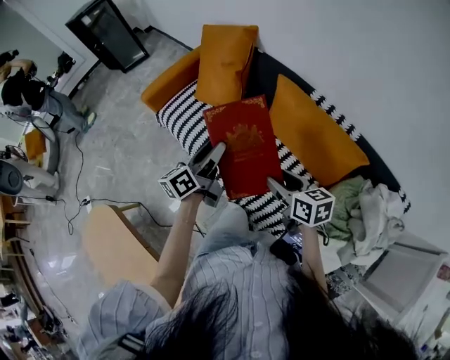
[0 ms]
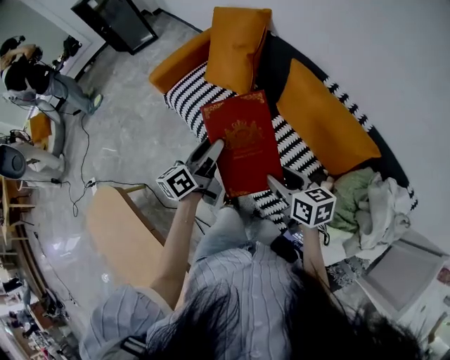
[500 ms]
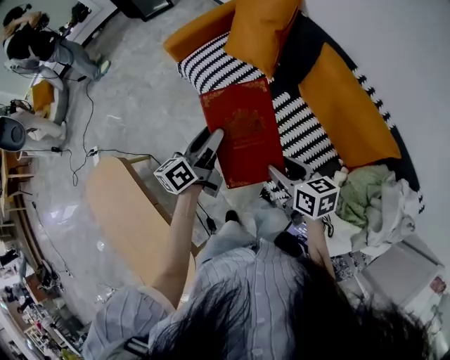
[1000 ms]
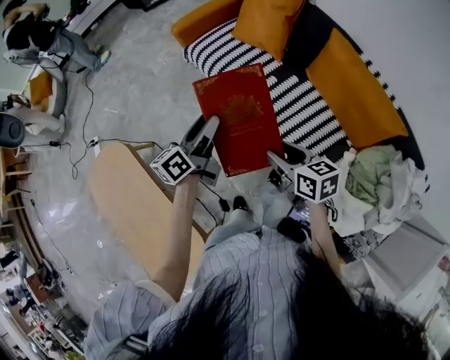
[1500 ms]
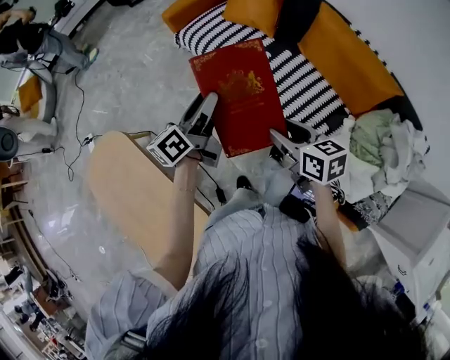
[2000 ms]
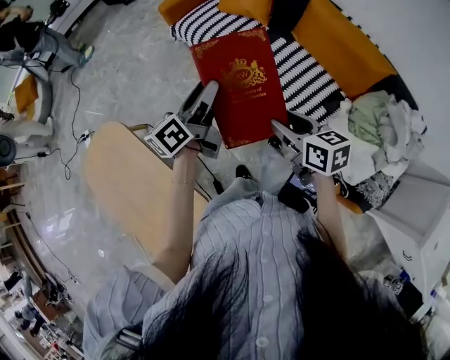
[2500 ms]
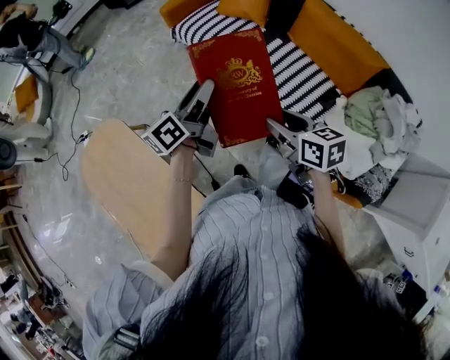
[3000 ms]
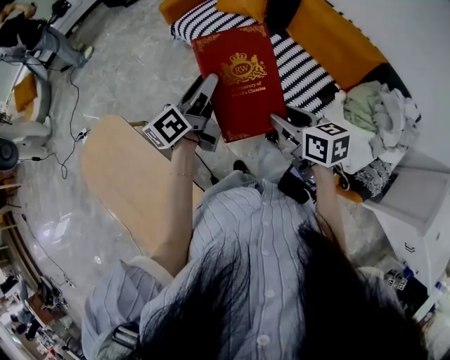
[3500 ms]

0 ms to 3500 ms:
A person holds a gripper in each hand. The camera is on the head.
0 ms to 2000 ms: The grippers both shift to the left and backward by about 25 cm.
2000 ms to 3500 ms: Both grippers move backward, approximately 10 cm.

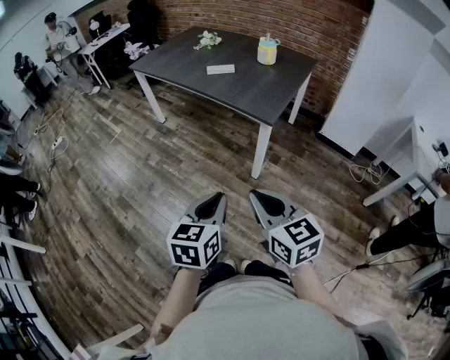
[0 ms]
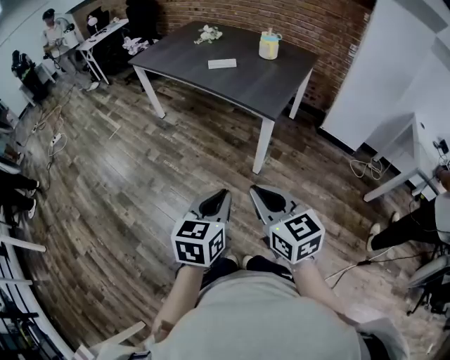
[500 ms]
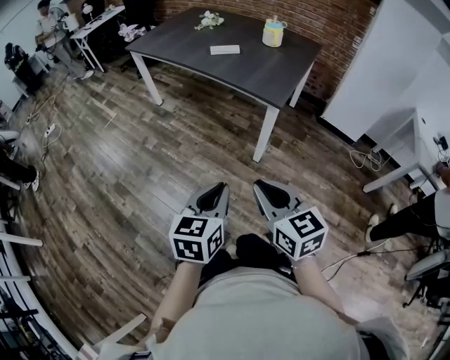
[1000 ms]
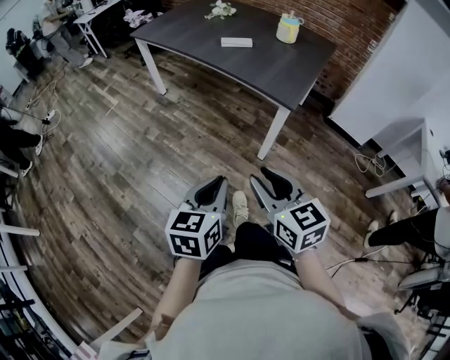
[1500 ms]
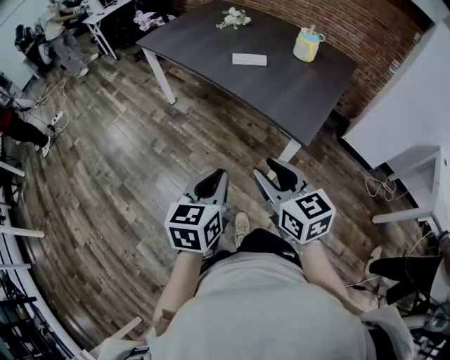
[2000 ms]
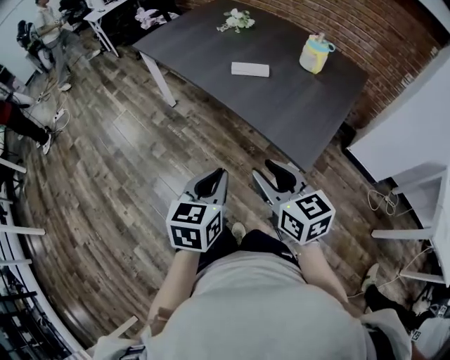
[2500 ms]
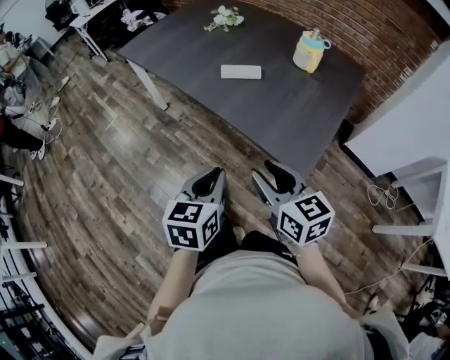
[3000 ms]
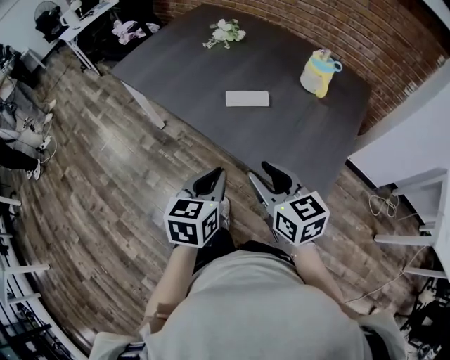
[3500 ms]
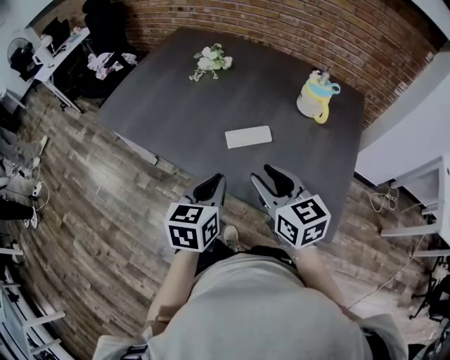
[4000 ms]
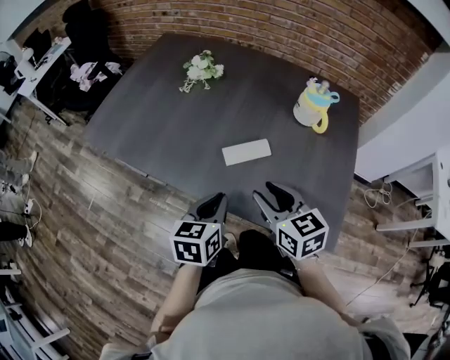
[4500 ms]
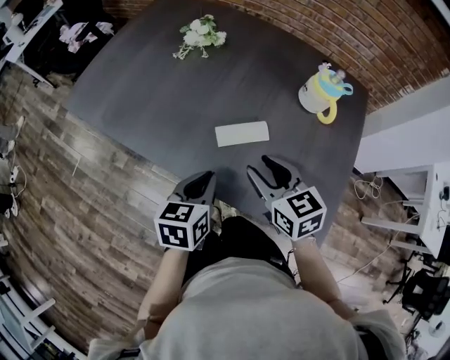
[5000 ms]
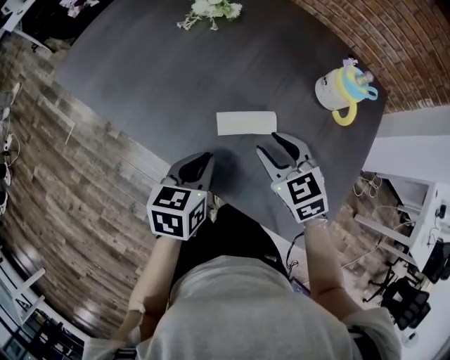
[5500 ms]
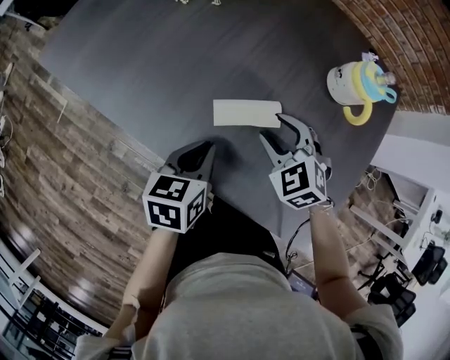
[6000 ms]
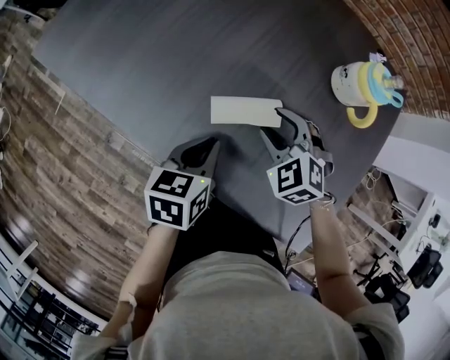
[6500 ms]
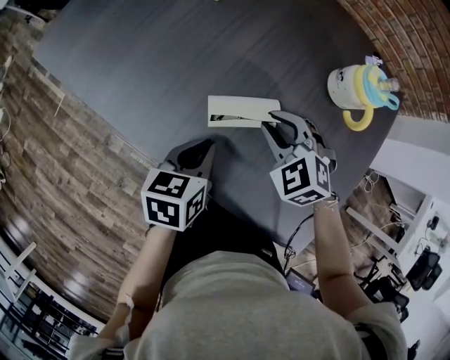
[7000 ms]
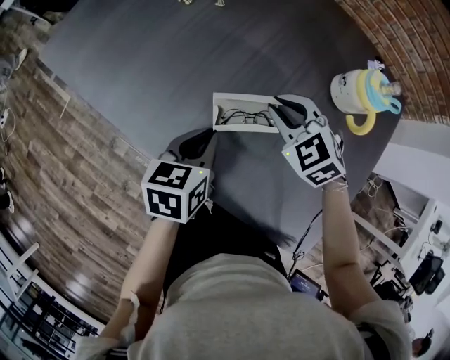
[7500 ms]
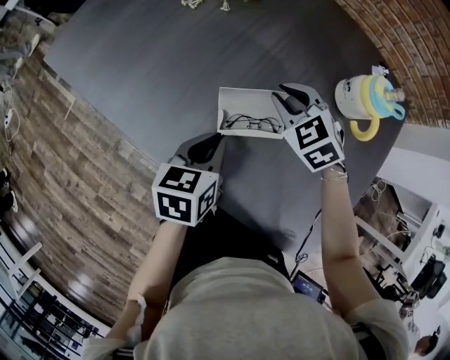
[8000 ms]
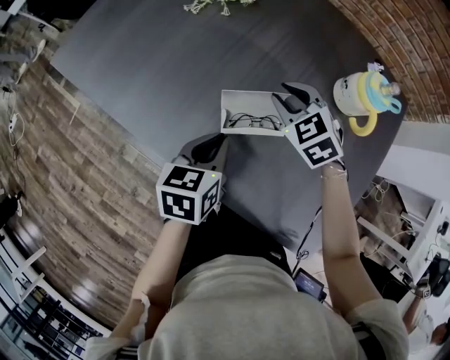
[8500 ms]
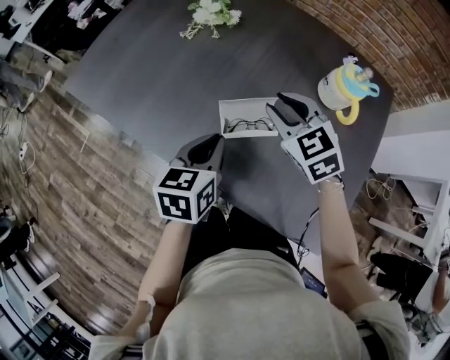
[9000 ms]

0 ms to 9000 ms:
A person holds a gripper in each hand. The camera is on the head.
0 ms to 2000 ms: Both grippers move forward, some 25 cm. The right gripper opens.
2000 ms to 4500 ms: Both grippers are carried forward, about 40 cm. The left gripper turns by about 20 degrees.
4500 ms to 7000 ms: The two grippers go approximately 15 cm forward and downward. The right gripper rolls counterclockwise, seen from behind, by roughly 50 degrees.
7000 ms to 9000 ms: Both grippers travel together upward, approximately 10 cm. The right gripper turns by approximately 20 degrees.

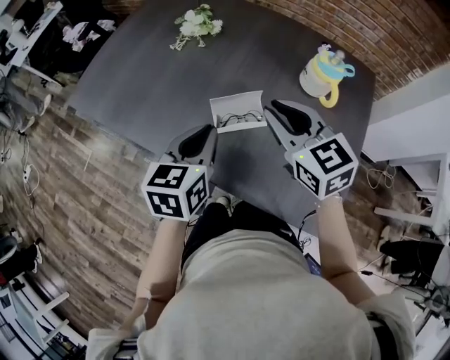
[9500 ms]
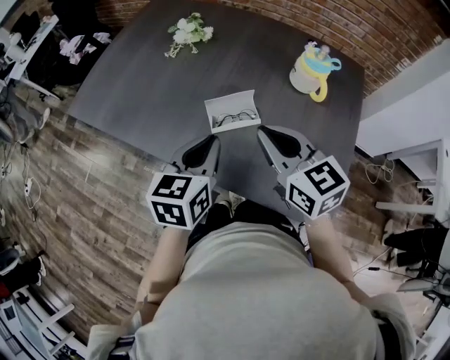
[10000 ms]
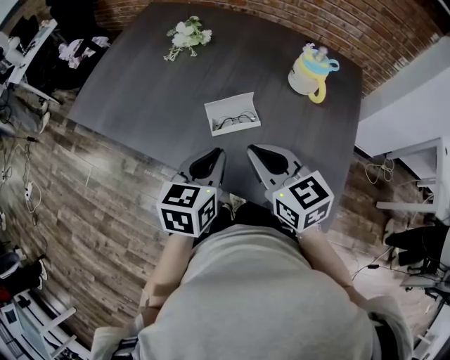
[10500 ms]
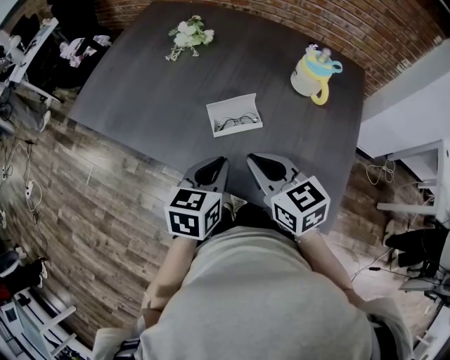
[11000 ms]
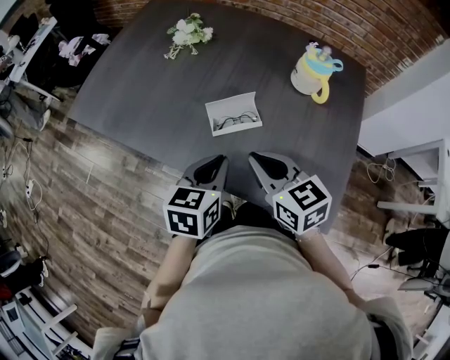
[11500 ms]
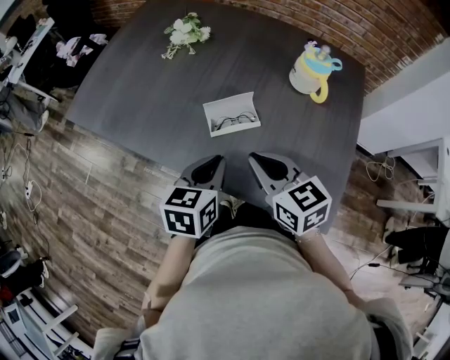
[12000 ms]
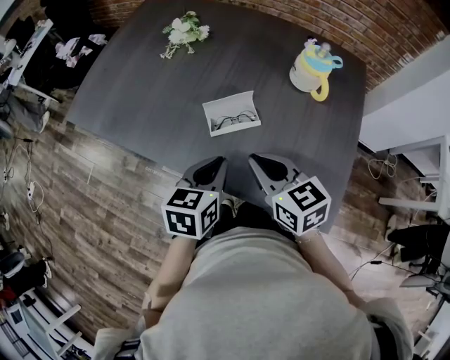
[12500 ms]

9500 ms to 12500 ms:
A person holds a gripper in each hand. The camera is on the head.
9500 ms to 11000 ms: The right gripper is displaced backward and downward by about 10 cm. Meanwhile the left gripper goes some 5 cm backward.
11000 ms to 12500 ms: There are only small adjustments of the grippers.

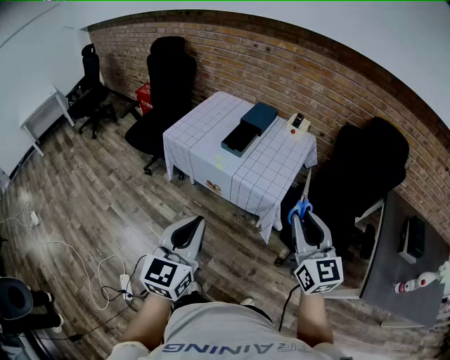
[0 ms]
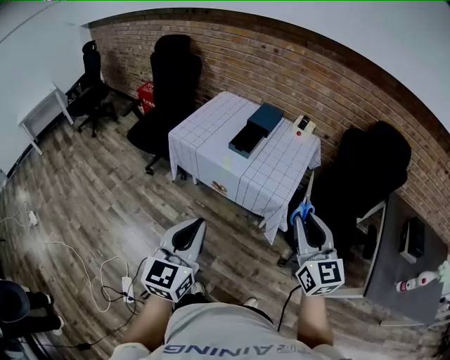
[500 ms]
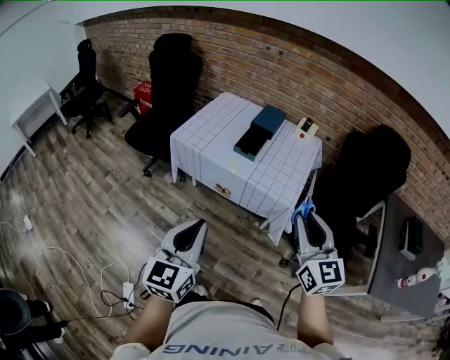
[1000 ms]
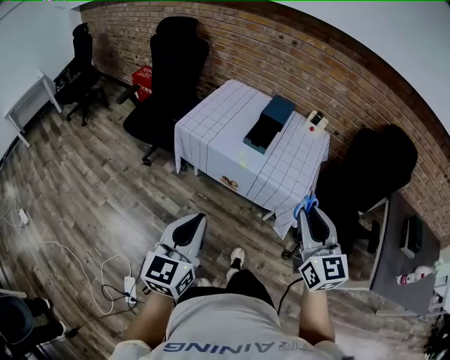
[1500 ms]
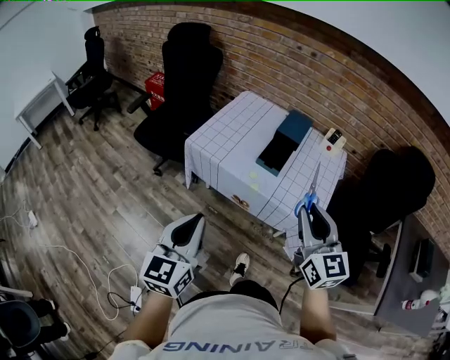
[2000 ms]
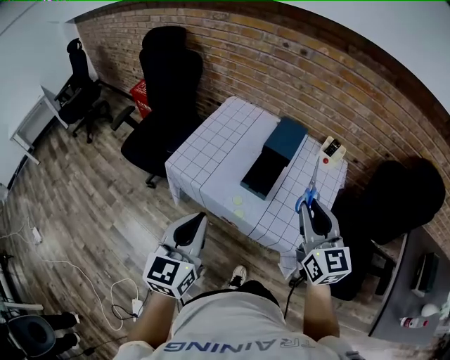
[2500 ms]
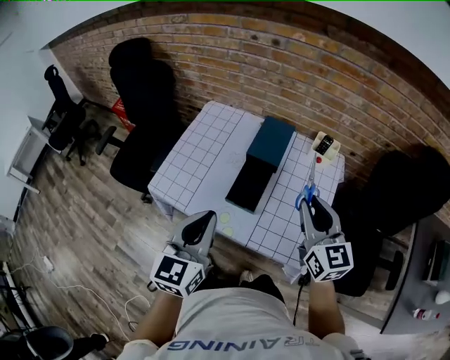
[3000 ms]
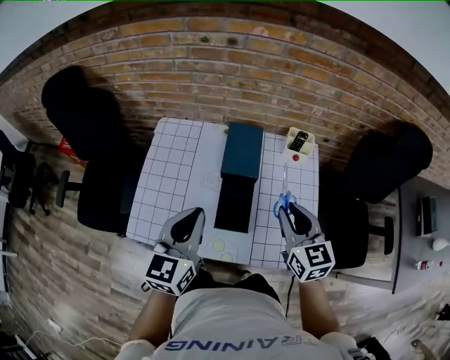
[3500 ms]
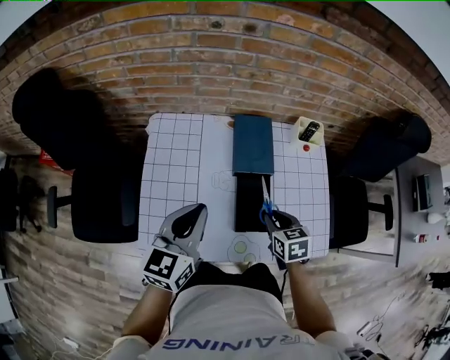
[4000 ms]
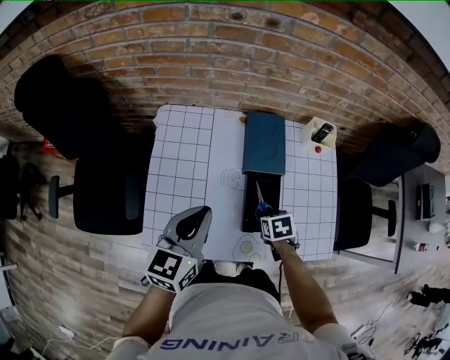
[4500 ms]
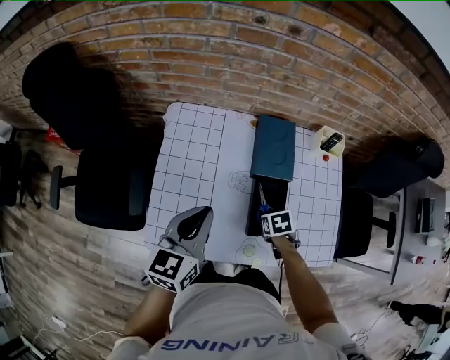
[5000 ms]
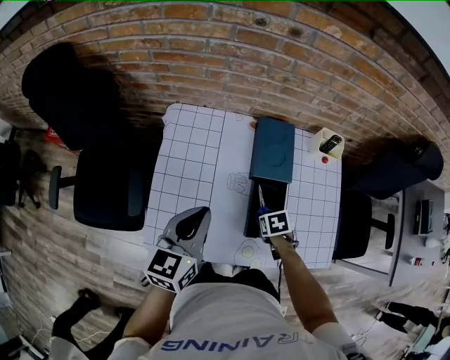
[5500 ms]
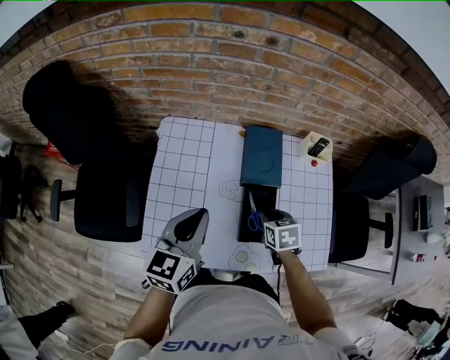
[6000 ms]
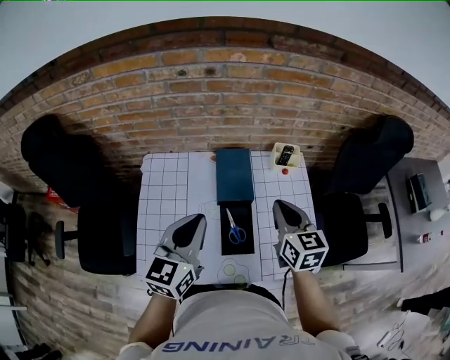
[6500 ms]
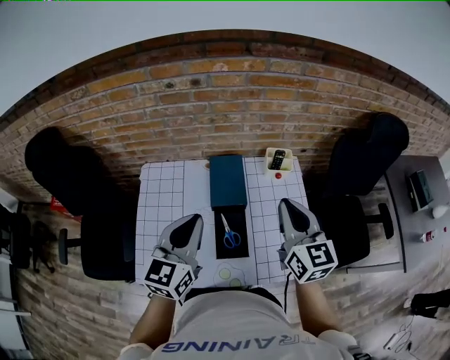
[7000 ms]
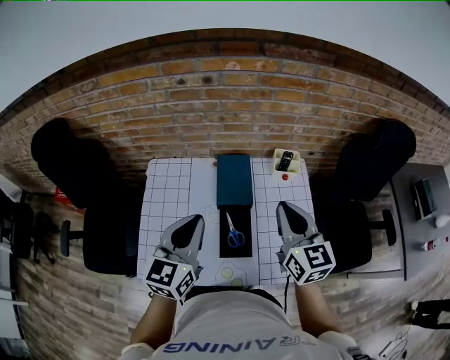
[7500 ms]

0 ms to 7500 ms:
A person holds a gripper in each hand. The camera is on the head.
0 ms to 2000 ms: The grippers both shift to the left and forward by some 25 cm.
2000 ms to 4000 ms: The right gripper changes place by roughly 40 cm, and tips its fingers downward by roughly 50 degrees; the left gripper changes place by approximately 50 cm, and swivels about 40 degrees.
4000 ms to 5500 ms: The right gripper goes approximately 10 cm downward, and angles its fingers downward, by about 30 degrees.
5500 ms to 7500 ms: The left gripper shifts by approximately 15 cm. The right gripper moves upward, approximately 35 cm, tilts its fingers some 70 degrees upward, and closes its fingers.

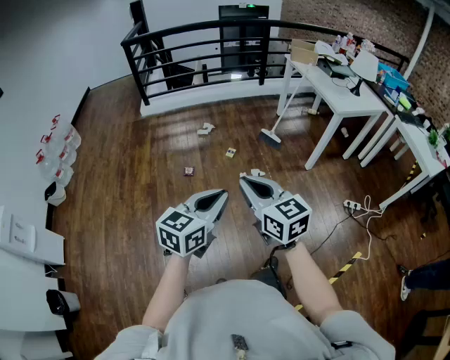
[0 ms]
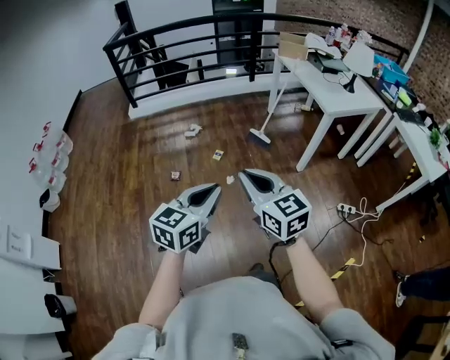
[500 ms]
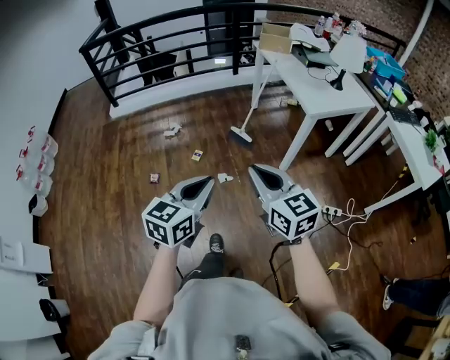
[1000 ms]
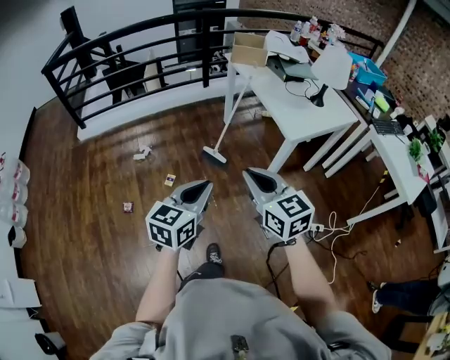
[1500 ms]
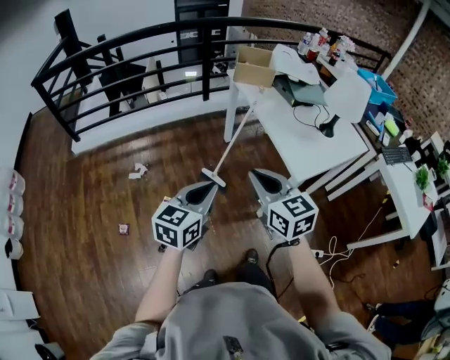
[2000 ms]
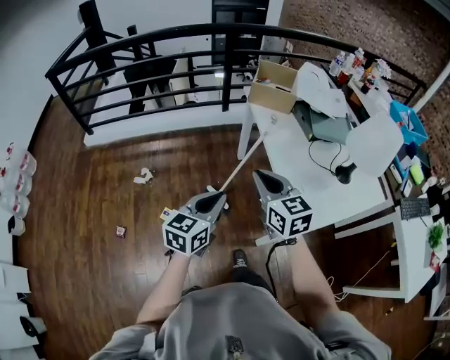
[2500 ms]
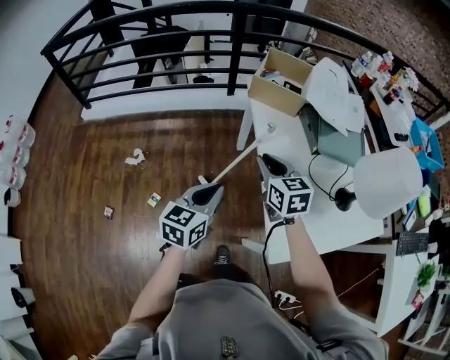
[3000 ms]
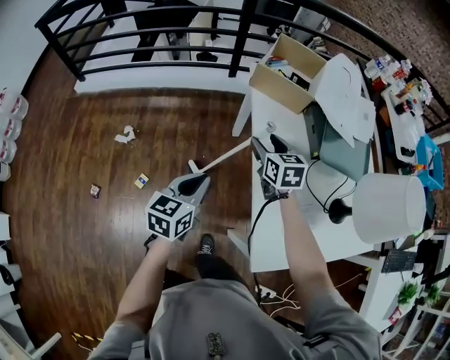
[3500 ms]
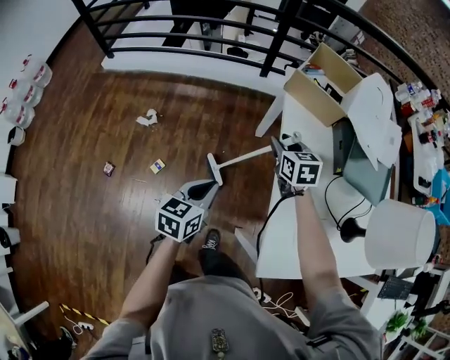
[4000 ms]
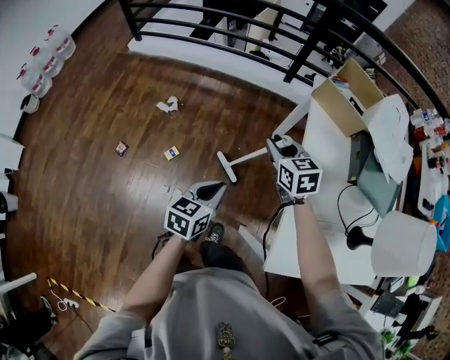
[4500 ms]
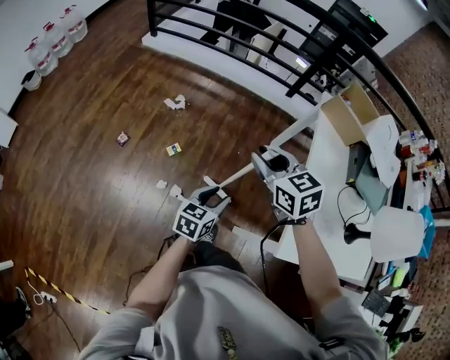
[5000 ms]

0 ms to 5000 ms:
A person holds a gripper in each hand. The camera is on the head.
0 ms to 2500 ms: The pair of grippers is taken forward and to the right, roughly 90 cm.
2500 ms to 5000 ms: The left gripper moves downward, about 20 cm, rotates roughly 30 degrees, and opens its fingers. Meanwhile the right gripper travels downward and back again, approximately 20 cm each way, turns by approximately 40 degrees, and opens.
